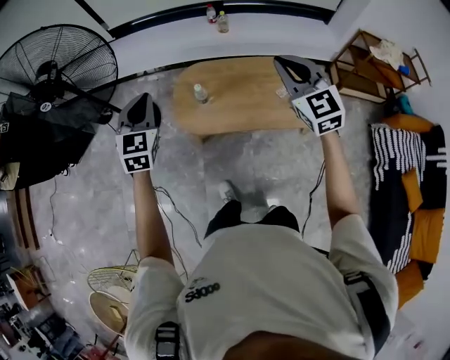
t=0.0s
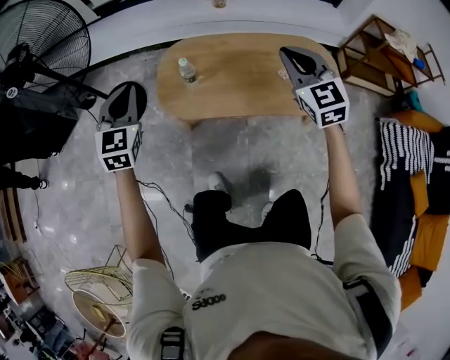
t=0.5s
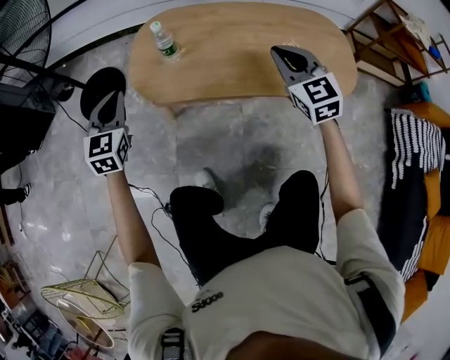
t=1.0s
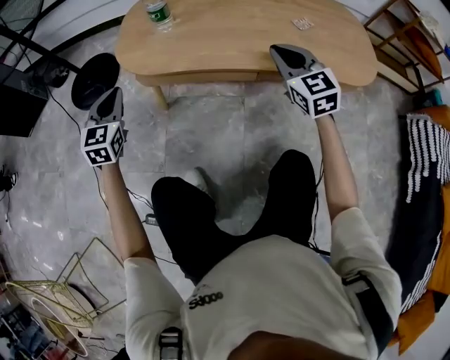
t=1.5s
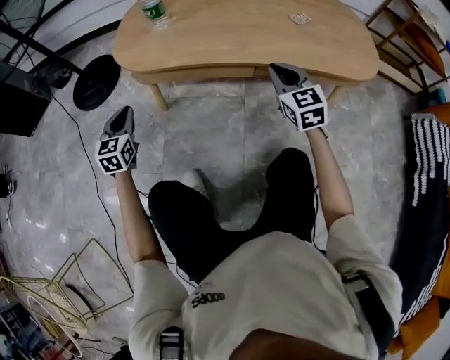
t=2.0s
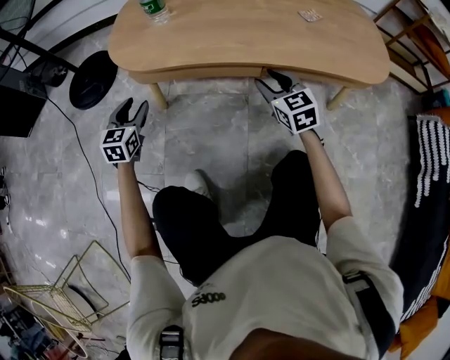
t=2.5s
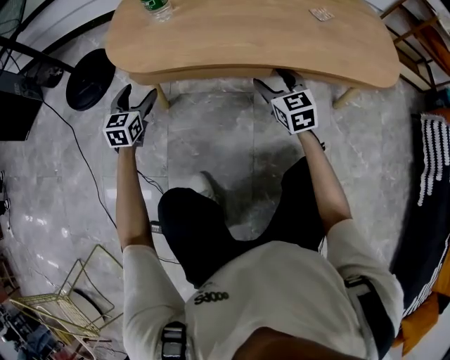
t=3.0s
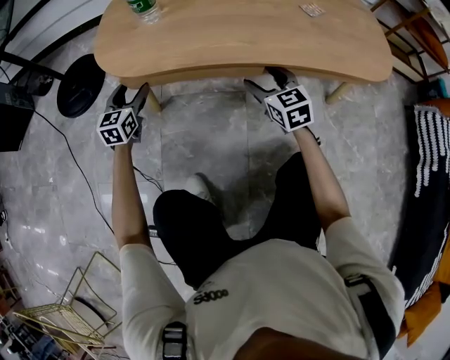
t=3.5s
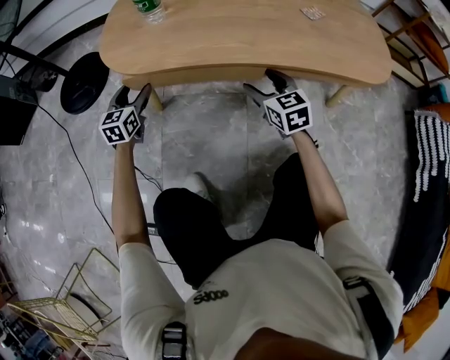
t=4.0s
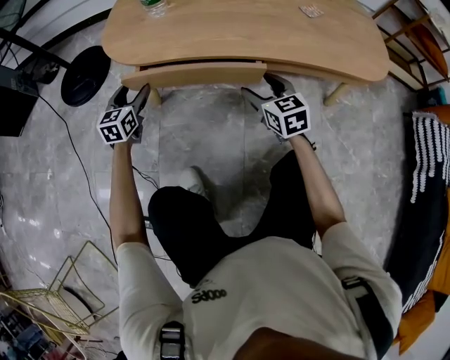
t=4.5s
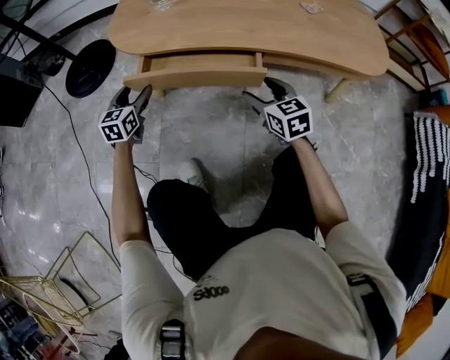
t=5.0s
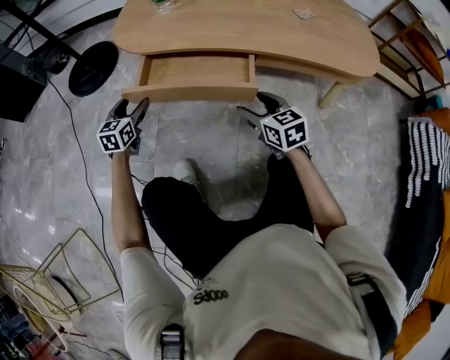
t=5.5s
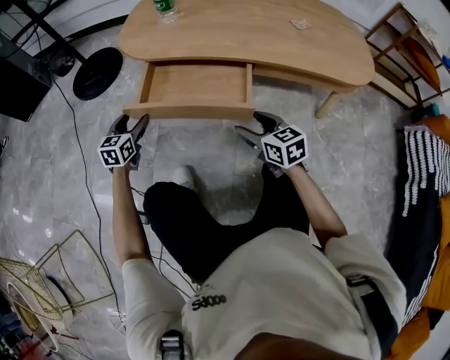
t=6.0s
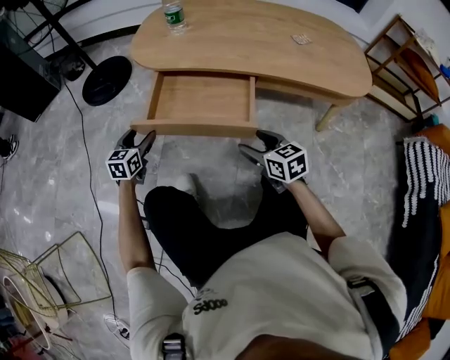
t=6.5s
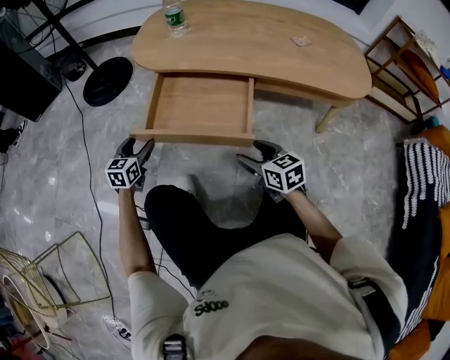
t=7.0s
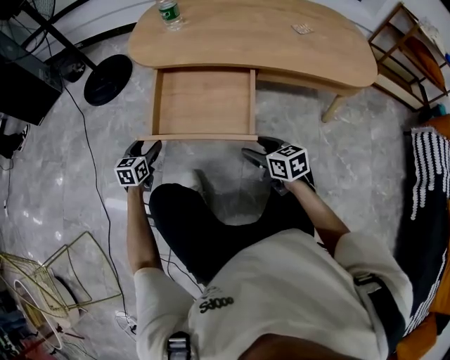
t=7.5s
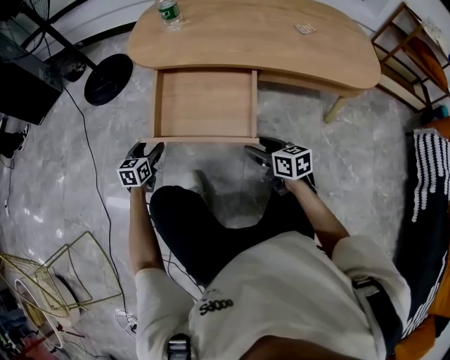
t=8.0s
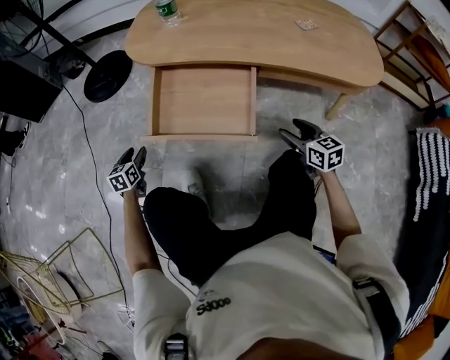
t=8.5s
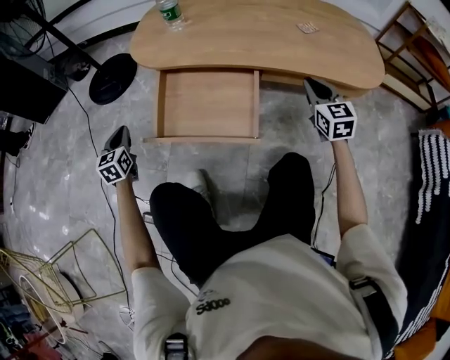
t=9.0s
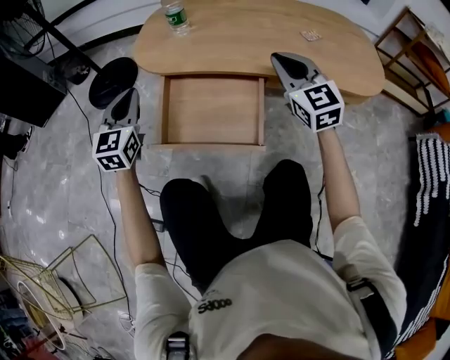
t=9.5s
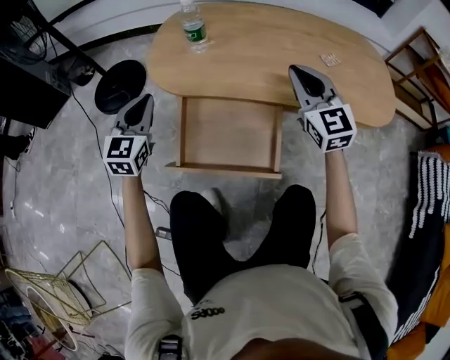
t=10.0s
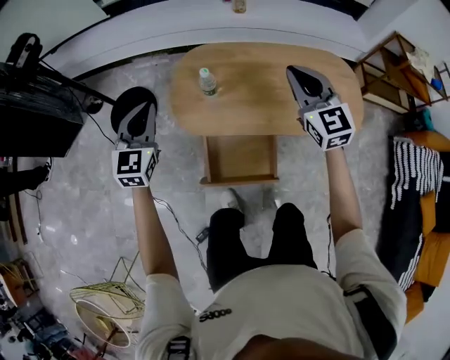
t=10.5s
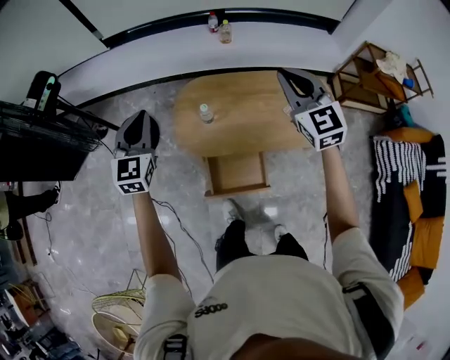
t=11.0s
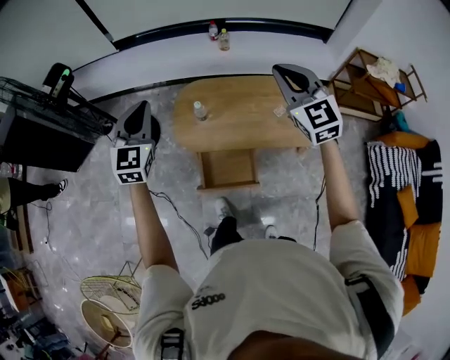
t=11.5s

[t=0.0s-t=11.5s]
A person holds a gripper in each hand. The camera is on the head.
t=0.0s to t=2.0s: Both grippers move downward, about 70 cm.
t=2.0s to t=4.0s: The left gripper heads forward and downward, covering approximately 15 cm, and opens up. Meanwhile the right gripper travels downward and to the left by roughly 10 cm, and opens its fingers.
t=4.0s to t=6.0s: Both grippers move backward, about 15 cm.
t=6.0s to t=7.5s: The right gripper shifts by roughly 5 cm, while the left gripper is displaced backward and downward by some 10 cm.
t=7.5s to t=9.5s: The right gripper is displaced upward and forward by approximately 30 cm, swivels some 50 degrees, and closes; the left gripper shifts some 25 cm upward, swivels about 30 degrees, and closes.
t=9.5s to t=11.5s: Both grippers move upward, approximately 60 cm.

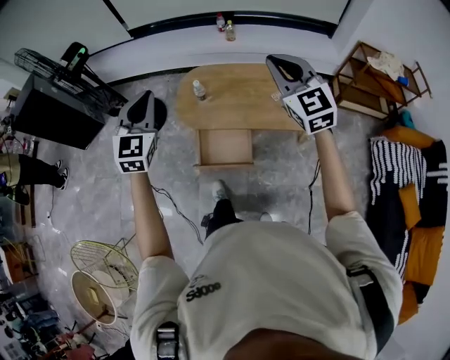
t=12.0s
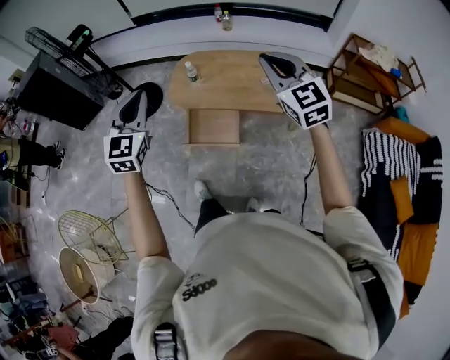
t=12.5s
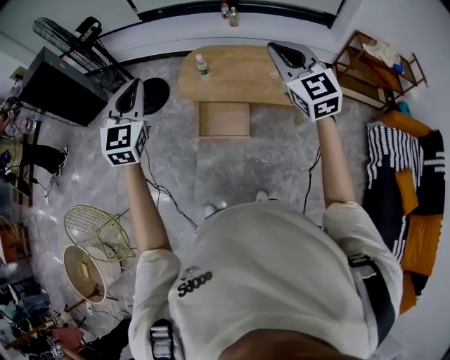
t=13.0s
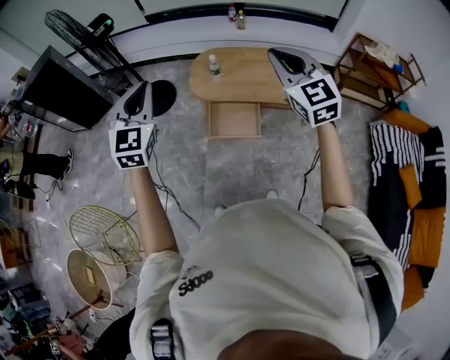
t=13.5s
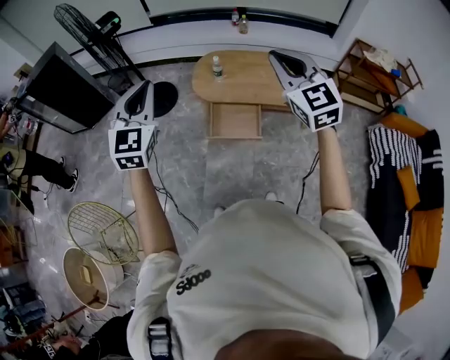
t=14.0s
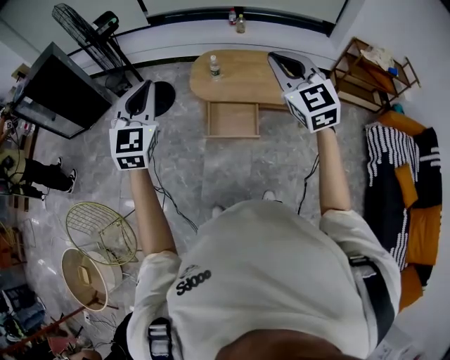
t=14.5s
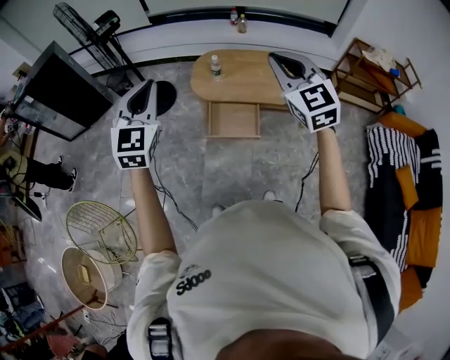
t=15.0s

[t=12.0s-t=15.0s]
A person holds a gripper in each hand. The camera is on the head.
t=12.0s to t=13.5s: Both grippers move backward and to the left, some 25 cm.
t=13.5s to t=15.0s: The right gripper moves roughly 5 cm.

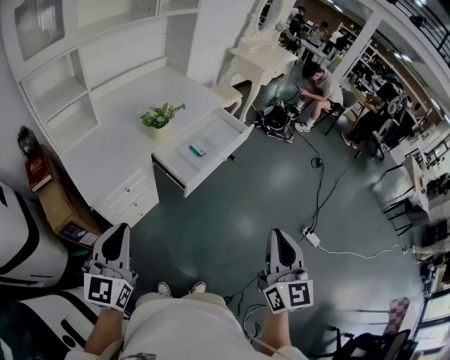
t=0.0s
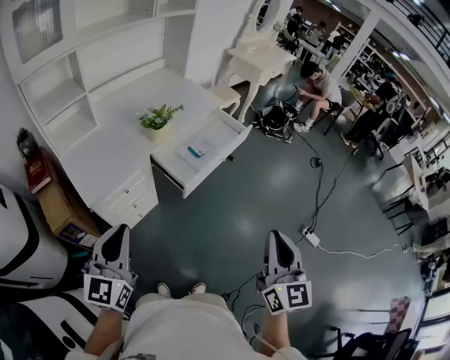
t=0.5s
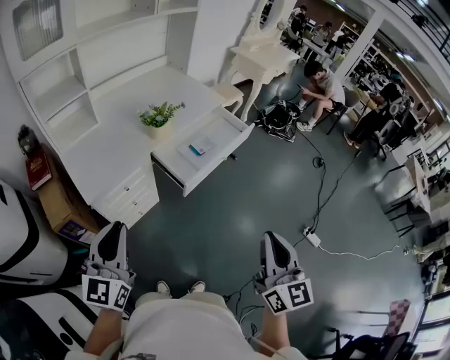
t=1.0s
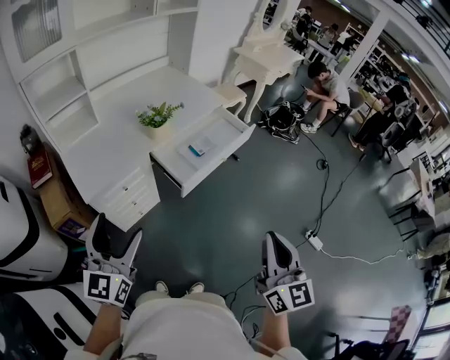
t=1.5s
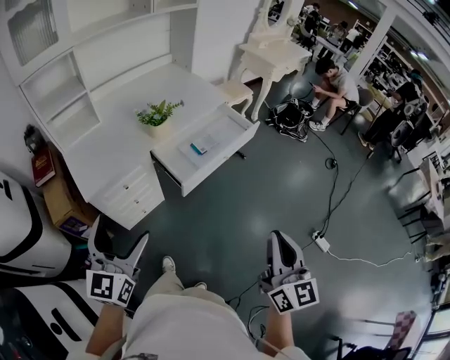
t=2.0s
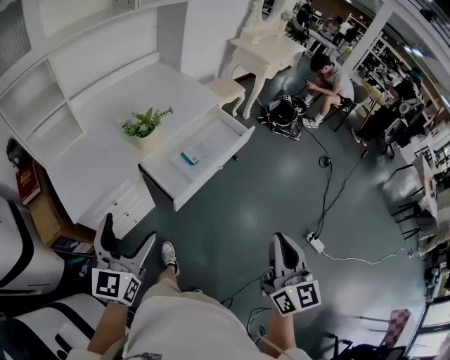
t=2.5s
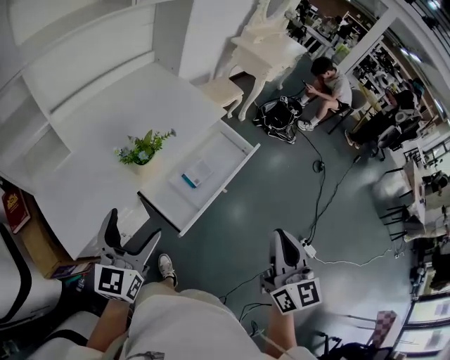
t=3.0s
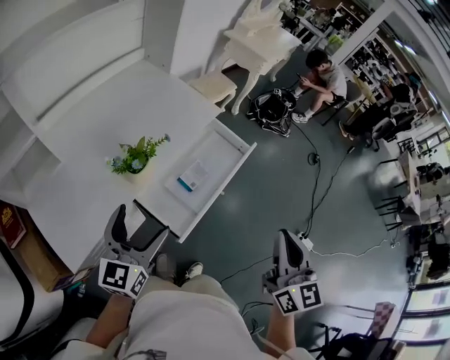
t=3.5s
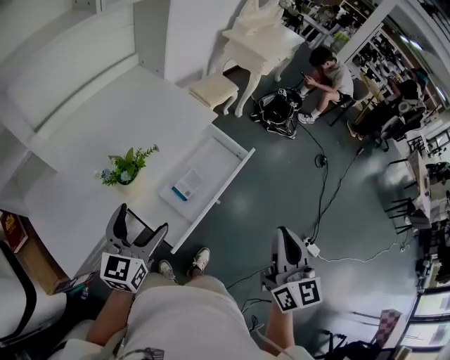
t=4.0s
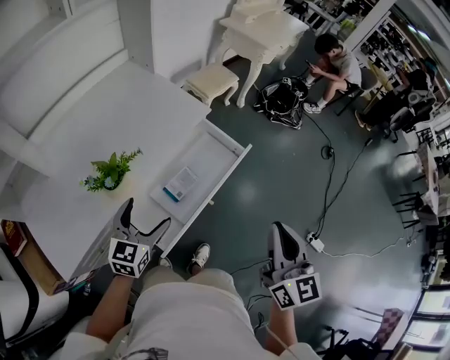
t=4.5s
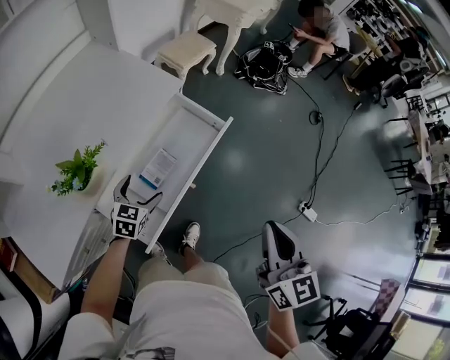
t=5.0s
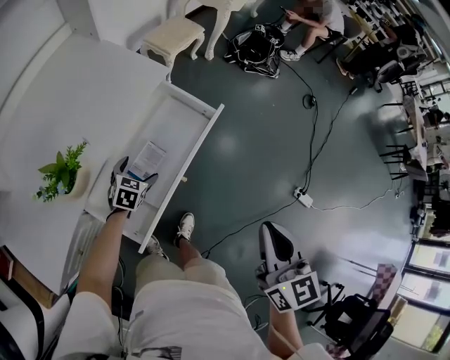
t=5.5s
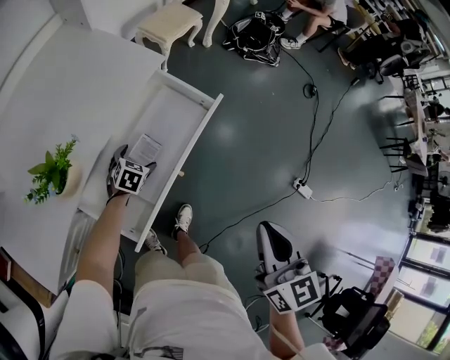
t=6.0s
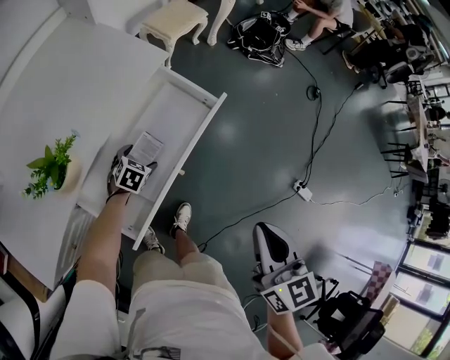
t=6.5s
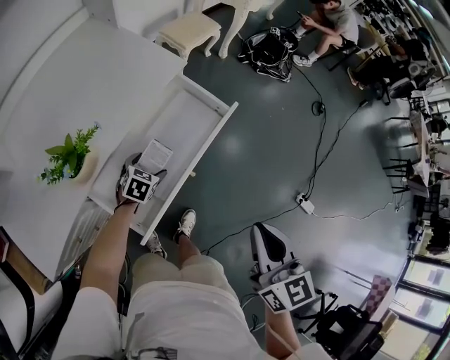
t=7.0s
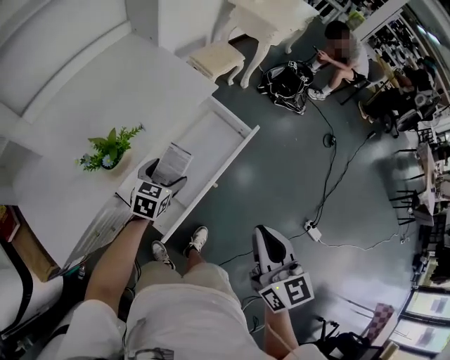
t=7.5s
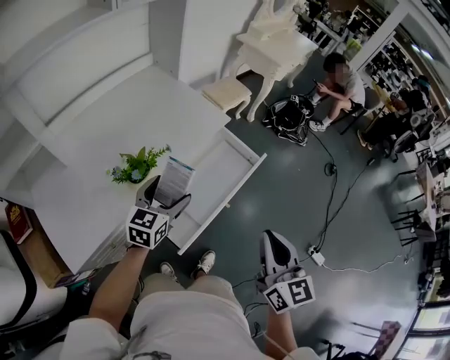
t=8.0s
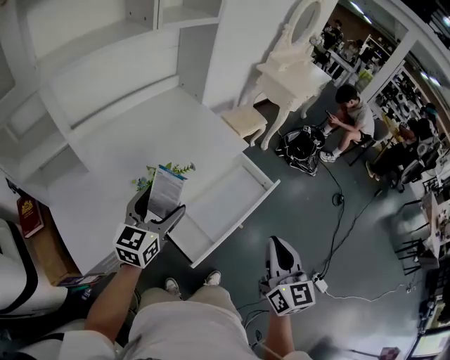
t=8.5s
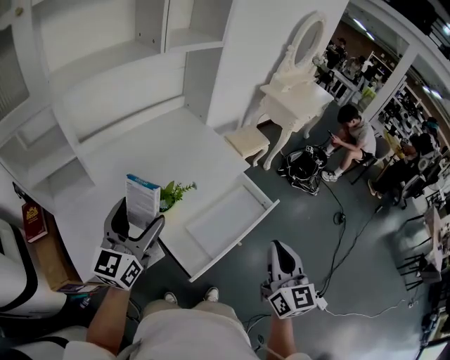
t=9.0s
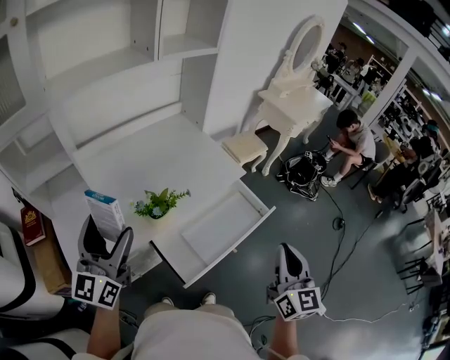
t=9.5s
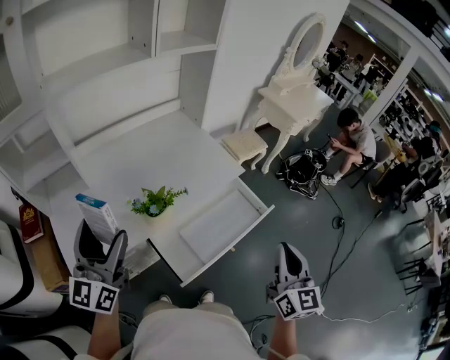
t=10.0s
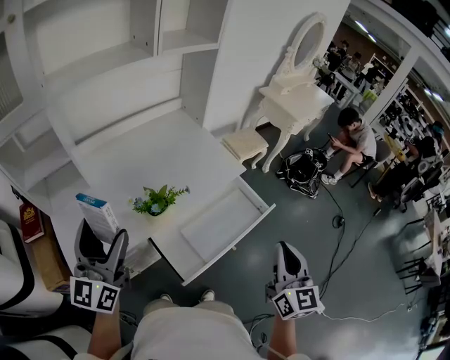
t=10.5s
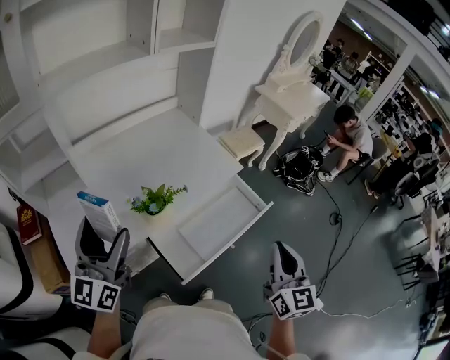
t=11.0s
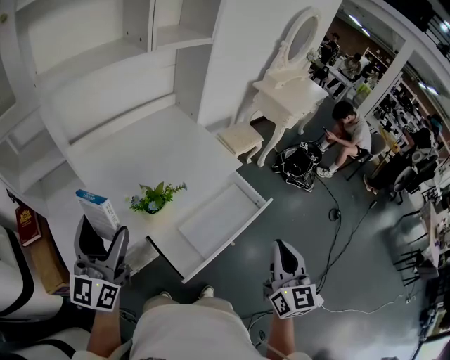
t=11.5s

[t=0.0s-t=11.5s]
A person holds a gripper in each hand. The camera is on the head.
t=0.0s to t=2.0s: The grippers both shift to the right by some 5 cm. The left gripper opens.
t=2.0s to t=4.0s: Both grippers travel together forward, roughly 35 cm.
t=4.0s to t=6.0s: The left gripper is displaced downward and forward by some 40 cm, and tips its fingers downward by about 50 degrees. The right gripper moves downward, to the right and forward, some 15 cm.
t=6.0s to t=7.5s: The right gripper goes roughly 10 cm to the left; the left gripper travels upward and backward by roughly 20 cm, and swivels some 30 degrees.
t=7.5s to t=9.5s: The left gripper goes approximately 50 cm upward, to the left and backward, and points its fingers about 50 degrees further upward. The right gripper goes some 10 cm upward and forward.
t=9.5s to t=11.5s: The grippers move only a little.

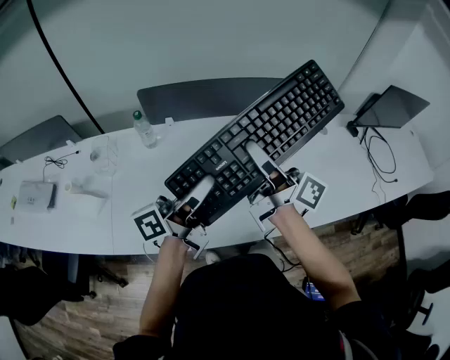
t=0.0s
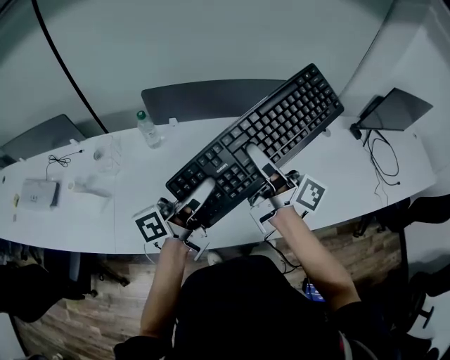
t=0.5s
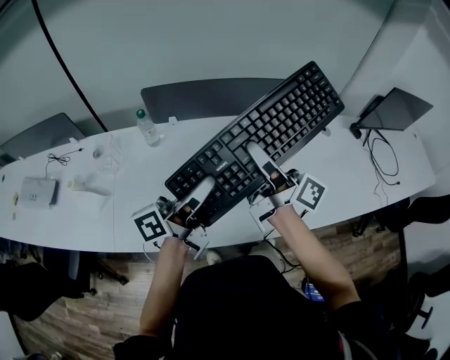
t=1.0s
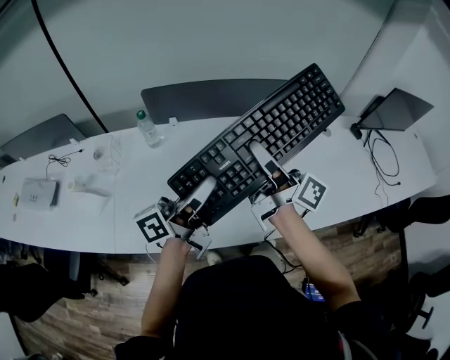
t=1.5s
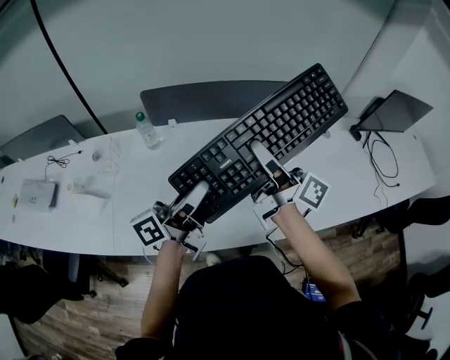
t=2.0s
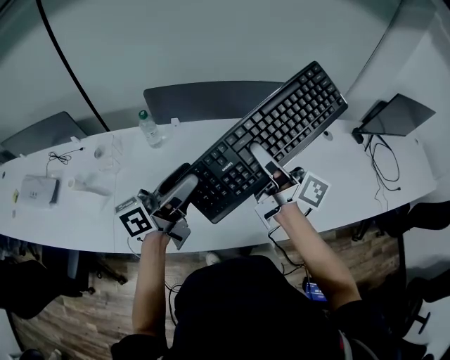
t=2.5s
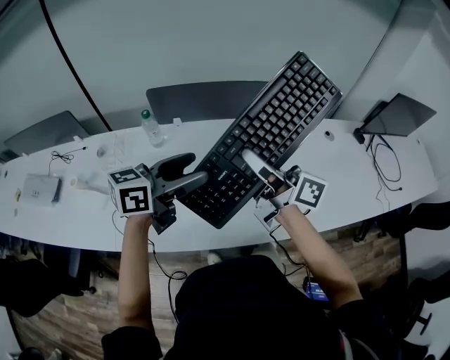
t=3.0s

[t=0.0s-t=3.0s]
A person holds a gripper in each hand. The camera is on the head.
t=0.0s to t=1.5s: Neither gripper changes place.
t=1.5s to t=3.0s: The left gripper rotates some 40 degrees, and opens.
